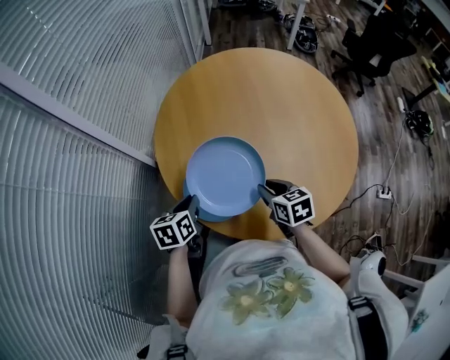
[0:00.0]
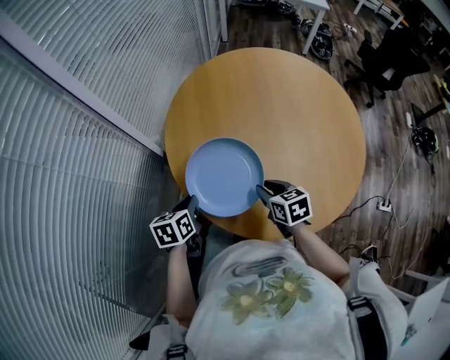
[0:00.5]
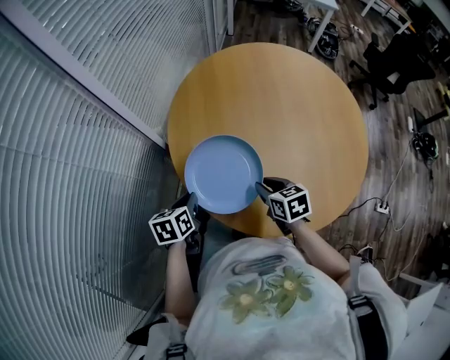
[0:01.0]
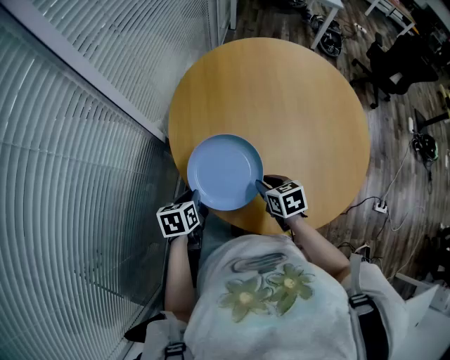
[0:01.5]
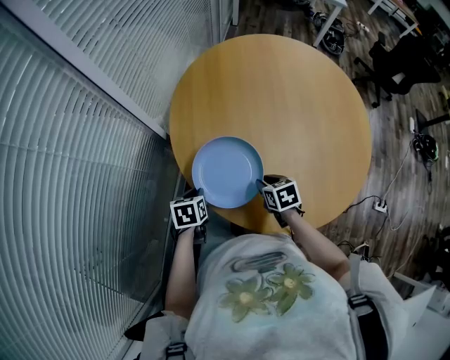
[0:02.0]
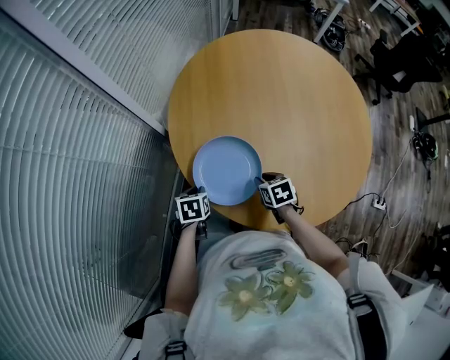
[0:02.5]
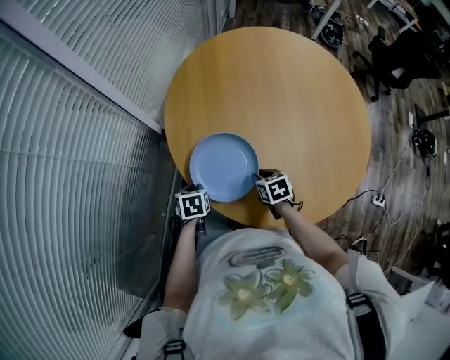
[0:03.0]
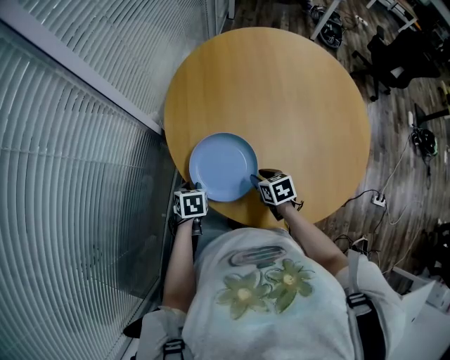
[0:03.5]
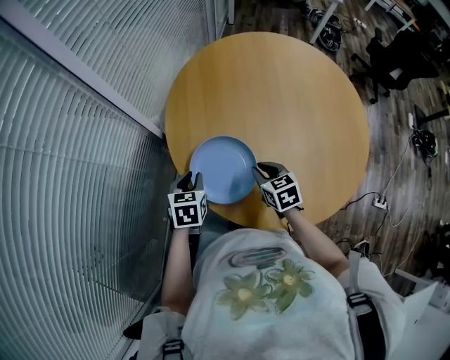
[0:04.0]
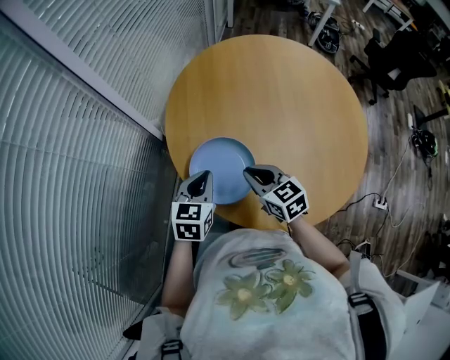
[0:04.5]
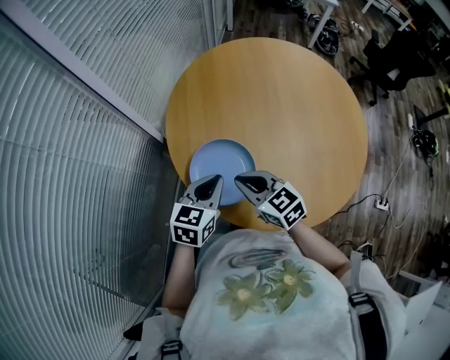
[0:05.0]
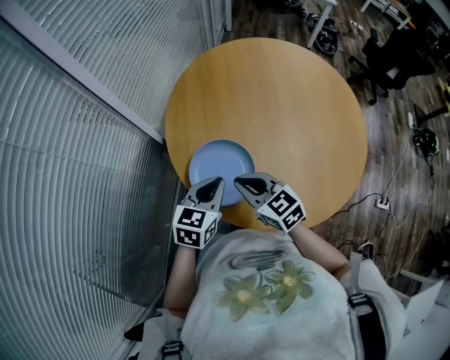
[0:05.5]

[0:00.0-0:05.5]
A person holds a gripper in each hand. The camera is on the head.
0:00.0 to 0:02.0: The two grippers go some 10 cm downward and to the left.
0:02.0 to 0:03.5: The grippers make only small movements.
0:03.5 to 0:05.5: The left gripper heads upward and to the right, covering about 25 cm, angles its fingers upward, by roughly 40 degrees, and closes its fingers, while the right gripper goes roughly 20 cm upward, and turns by roughly 40 degrees.

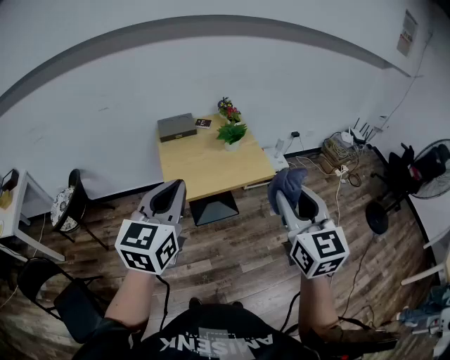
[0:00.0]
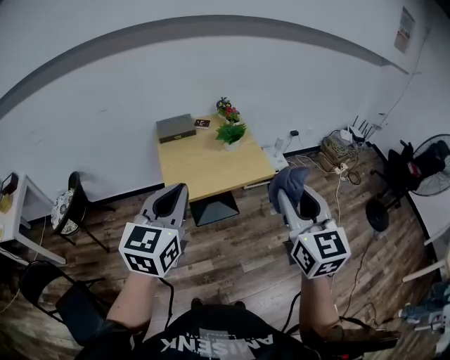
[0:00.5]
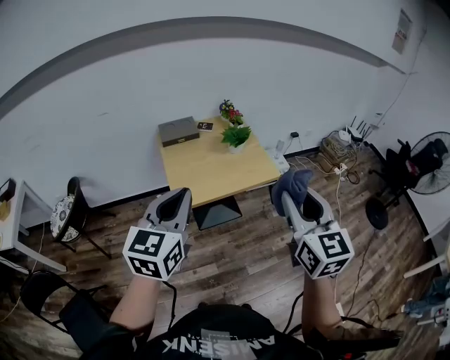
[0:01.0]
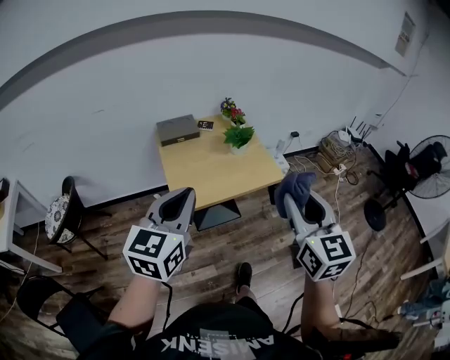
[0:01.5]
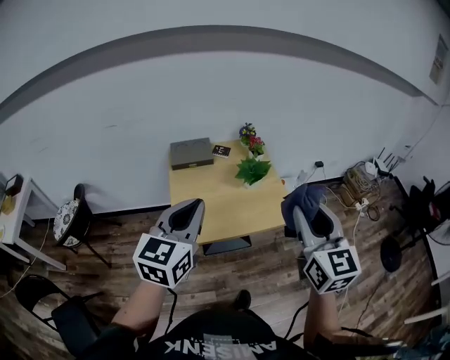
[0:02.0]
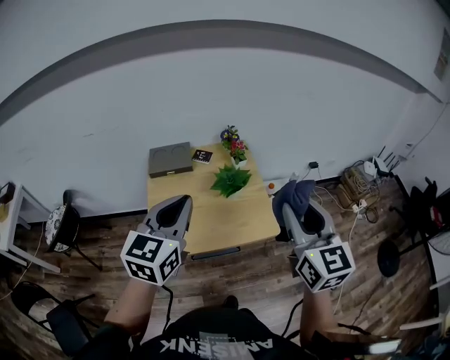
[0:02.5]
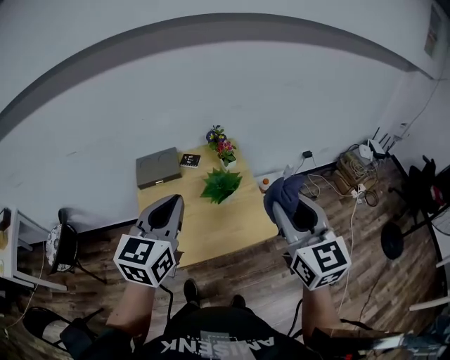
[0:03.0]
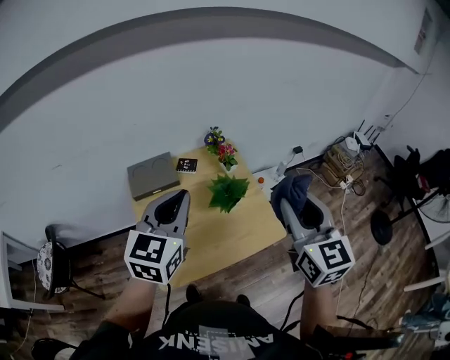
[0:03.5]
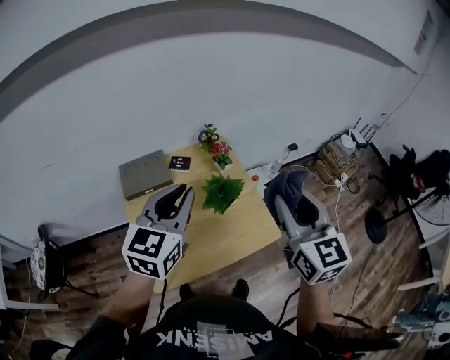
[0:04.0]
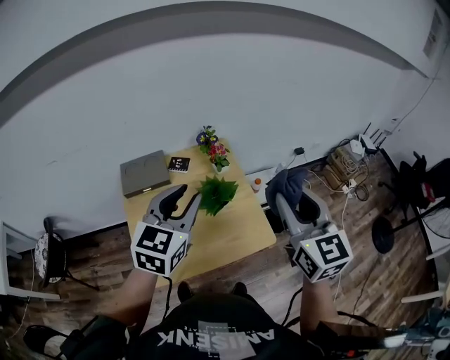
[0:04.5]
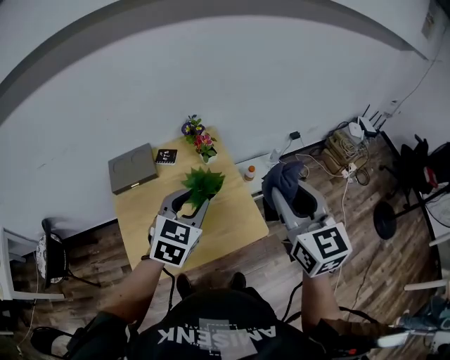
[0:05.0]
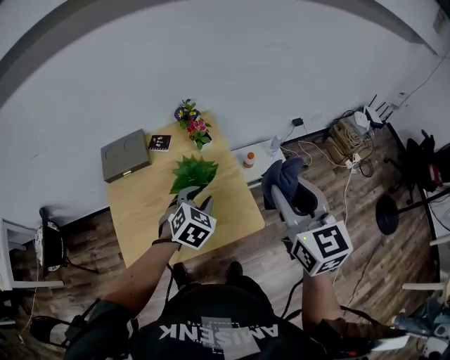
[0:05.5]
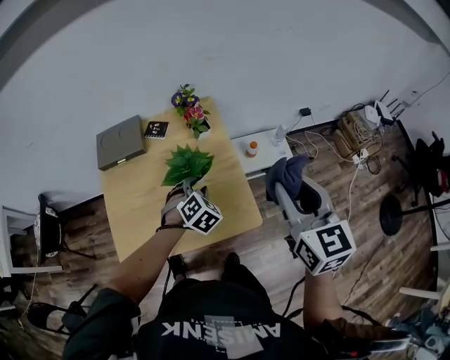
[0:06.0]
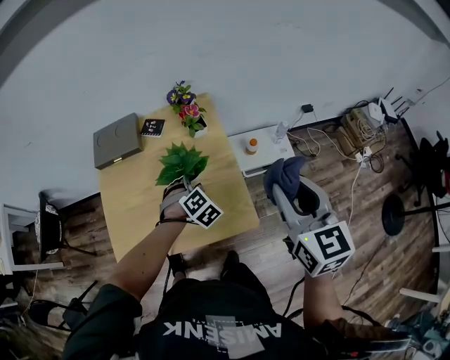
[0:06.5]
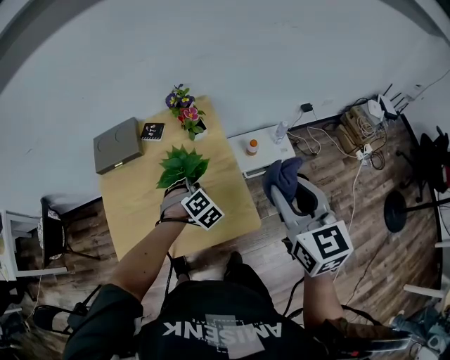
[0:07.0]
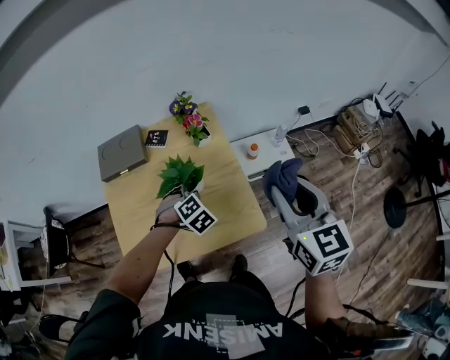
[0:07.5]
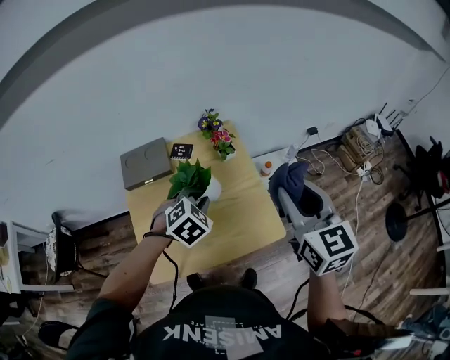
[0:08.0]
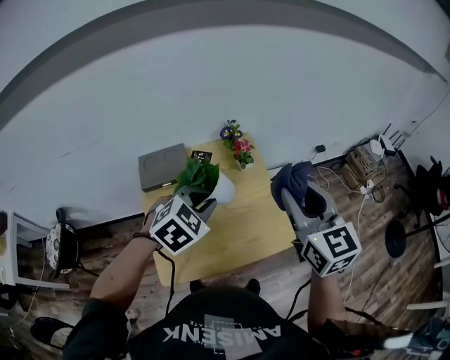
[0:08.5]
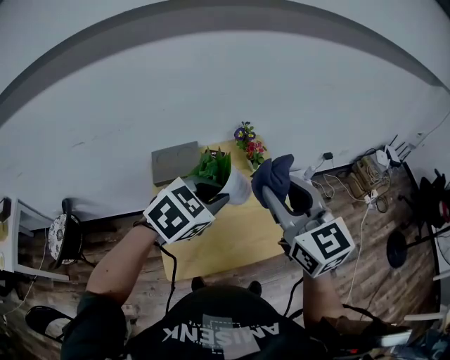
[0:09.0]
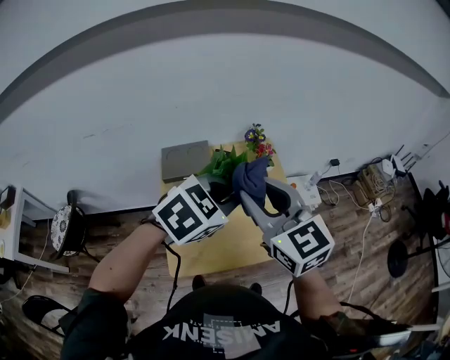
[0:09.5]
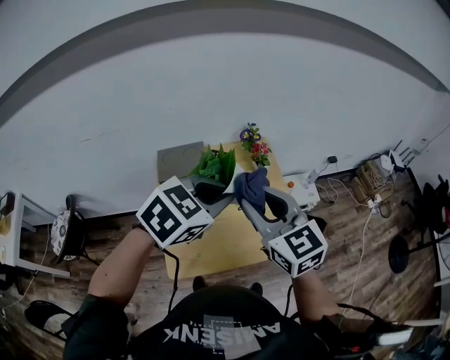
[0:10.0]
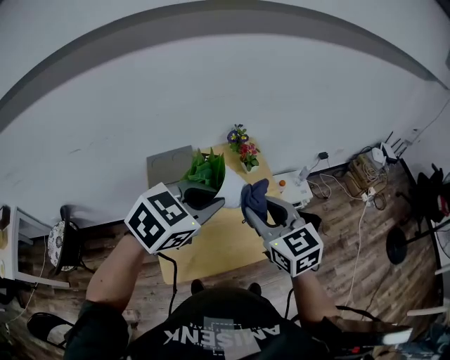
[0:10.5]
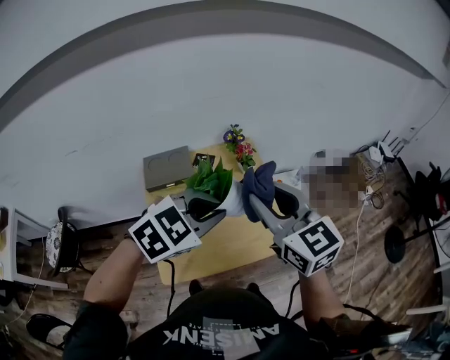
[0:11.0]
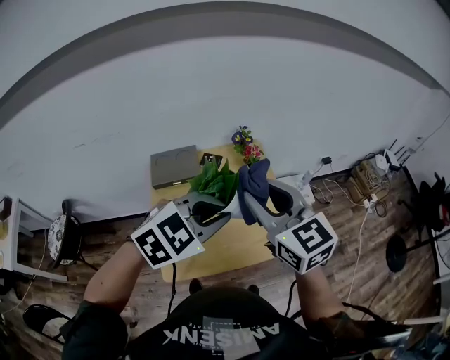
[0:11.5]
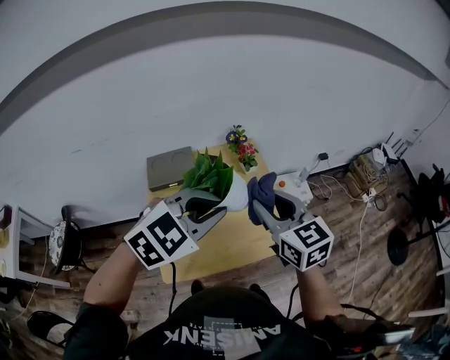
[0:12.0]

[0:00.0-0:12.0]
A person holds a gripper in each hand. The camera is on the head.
0:00.0 to 0:02.0: Both grippers move forward, approximately 20 cm.
0:02.0 to 0:04.0: Both grippers move forward, about 25 cm.
0:04.0 to 0:06.0: The right gripper travels to the right and downward by roughly 20 cm. The left gripper goes about 35 cm downward and to the right, tips its fingers downward by roughly 40 degrees, and opens up.
0:06.0 to 0:08.0: The left gripper shifts about 15 cm upward and to the left, and closes up. The right gripper heads to the left and upward, covering about 10 cm.
0:08.0 to 0:10.0: The right gripper is displaced to the left by approximately 20 cm, and rotates about 20 degrees, while the left gripper travels upward and backward by roughly 20 cm, and changes its angle by some 20 degrees.
0:10.0 to 0:12.0: The right gripper goes up and down, approximately 10 cm each way, reversing 2 times.

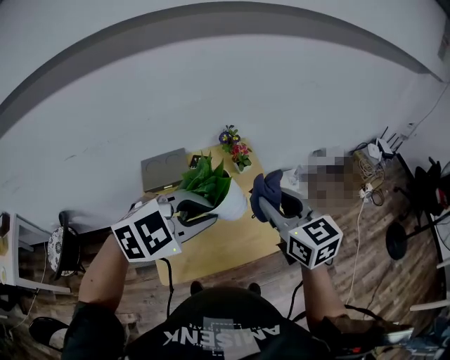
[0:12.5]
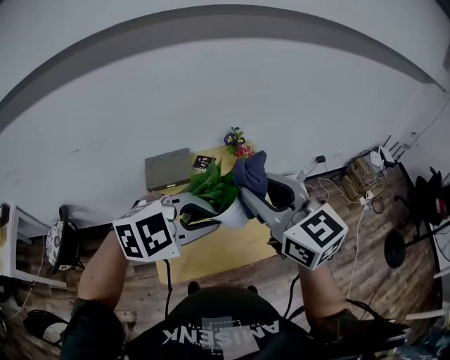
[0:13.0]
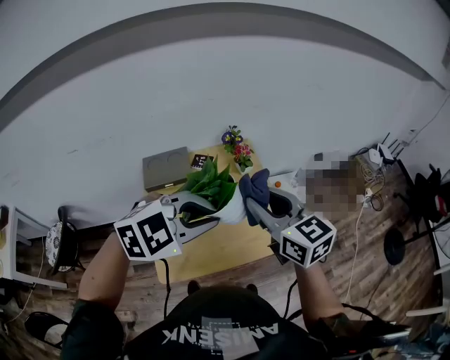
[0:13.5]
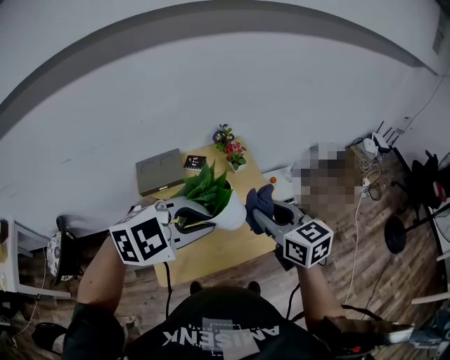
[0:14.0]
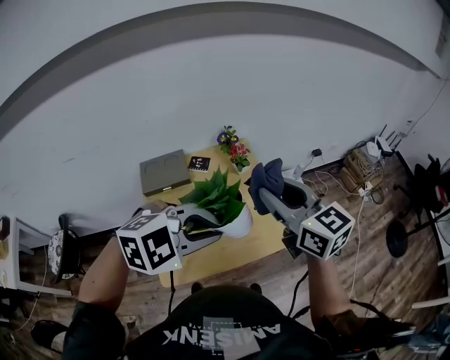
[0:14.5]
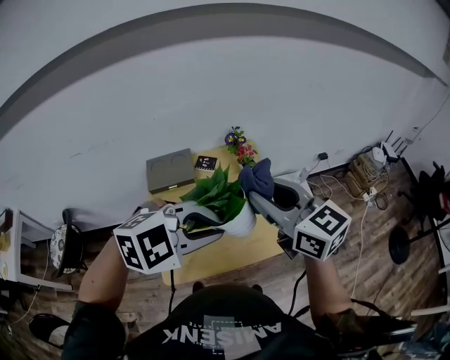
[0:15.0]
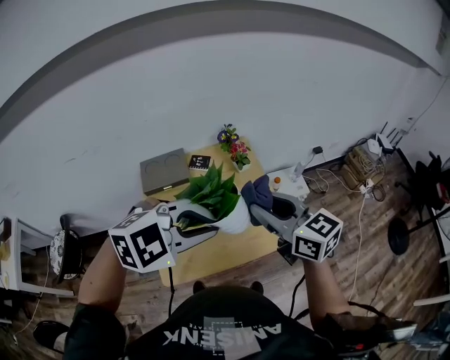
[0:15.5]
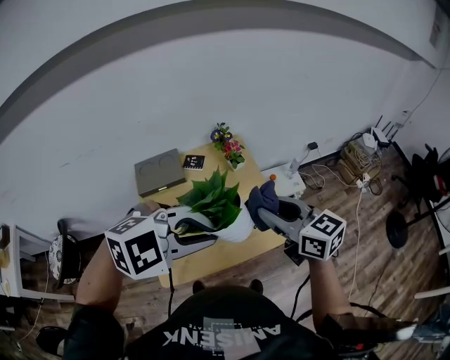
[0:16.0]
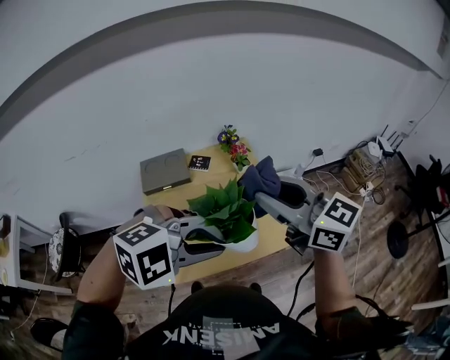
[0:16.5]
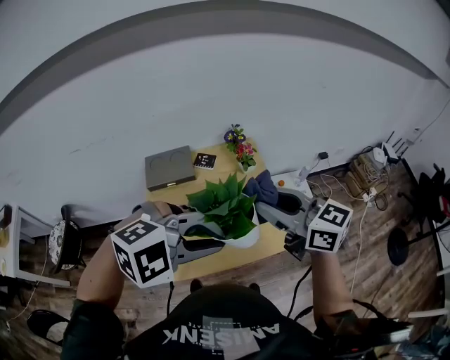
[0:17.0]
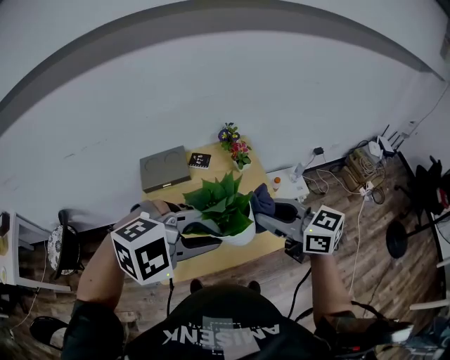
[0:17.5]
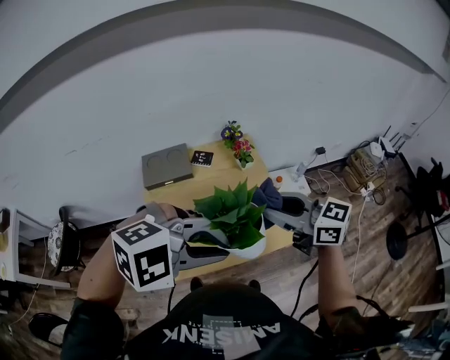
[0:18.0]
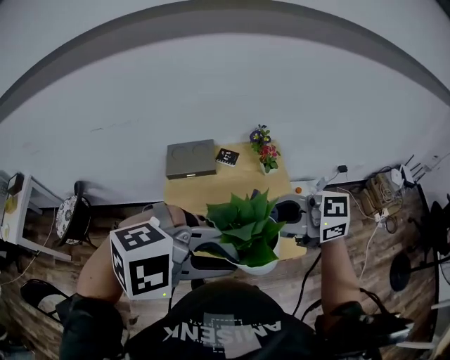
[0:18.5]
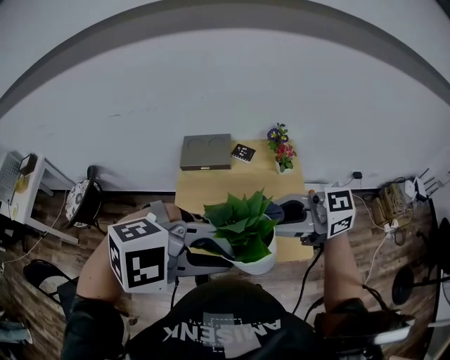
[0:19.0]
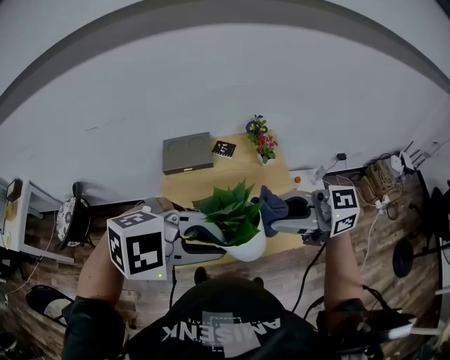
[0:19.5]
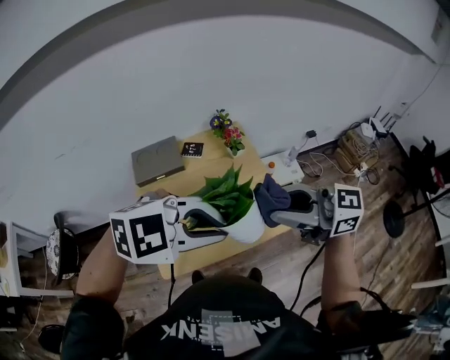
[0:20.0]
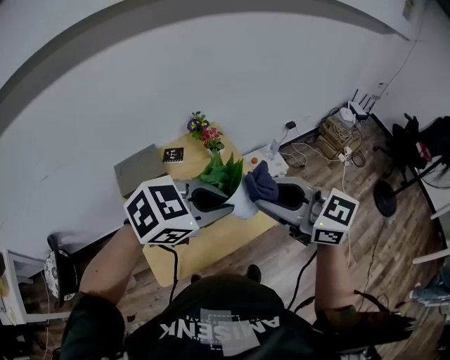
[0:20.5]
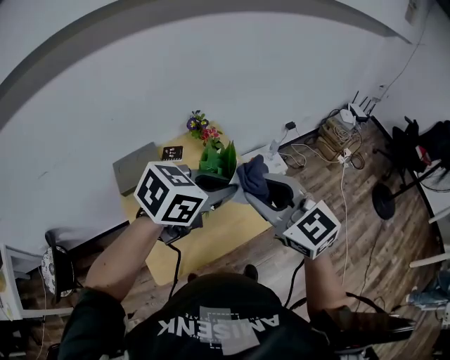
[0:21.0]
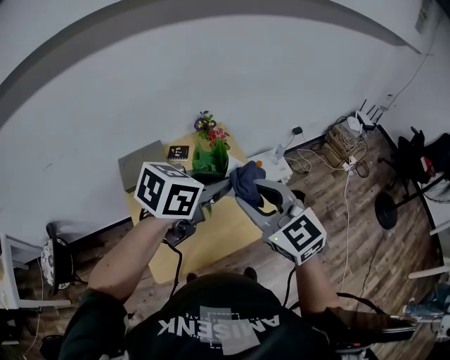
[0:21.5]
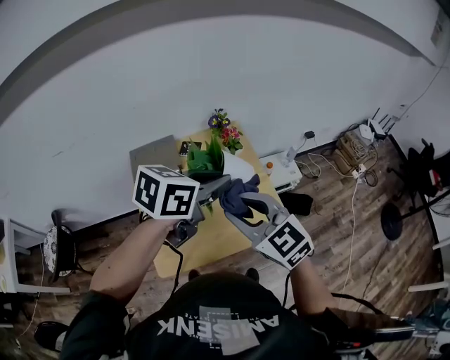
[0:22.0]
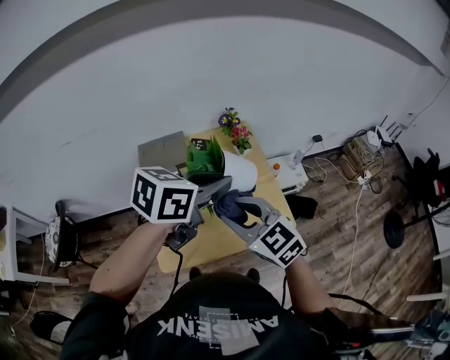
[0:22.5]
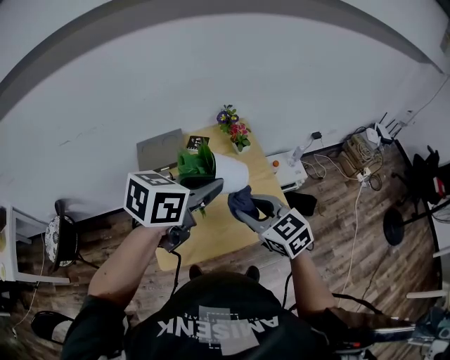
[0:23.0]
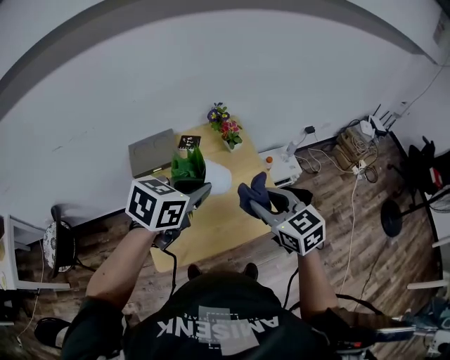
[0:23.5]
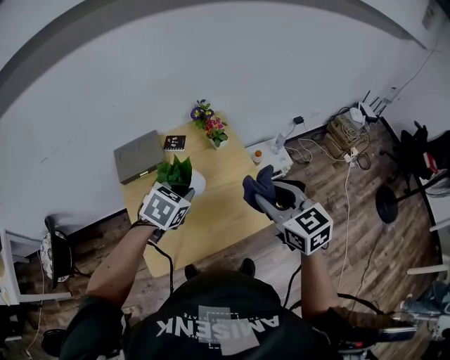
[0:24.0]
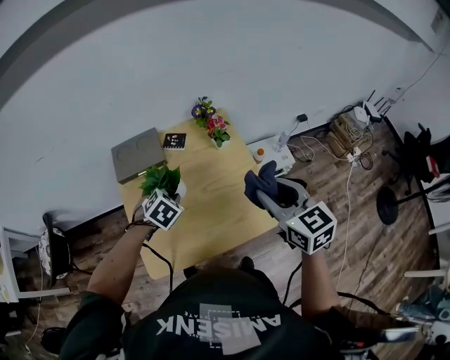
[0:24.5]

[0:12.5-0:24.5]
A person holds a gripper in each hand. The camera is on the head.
0:12.5 to 0:14.5: The right gripper moves up and down over roughly 15 cm, changing direction 2 times.
0:14.5 to 0:16.5: The right gripper reaches about 10 cm downward, then returns.
0:16.5 to 0:18.5: The right gripper travels downward by about 5 cm, and rotates about 40 degrees, while the left gripper changes place by some 5 cm.
0:18.5 to 0:20.5: The right gripper moves roughly 5 cm, and turns by about 50 degrees. Meanwhile the left gripper changes place by roughly 15 cm, and turns by about 30 degrees.
0:20.5 to 0:22.5: The left gripper moves roughly 10 cm, and rotates some 40 degrees; the right gripper moves about 15 cm.
0:22.5 to 0:24.5: The right gripper moves to the right and forward, approximately 20 cm, and rotates some 30 degrees. The left gripper goes about 25 cm downward, and points its fingers about 40 degrees further downward.
